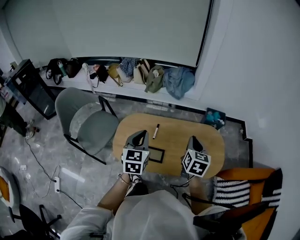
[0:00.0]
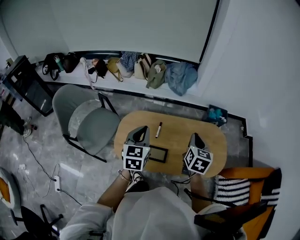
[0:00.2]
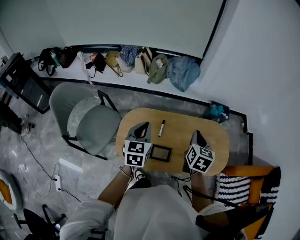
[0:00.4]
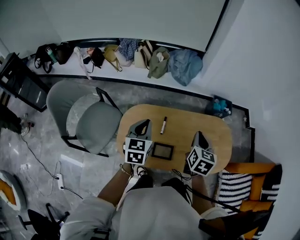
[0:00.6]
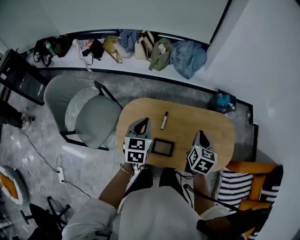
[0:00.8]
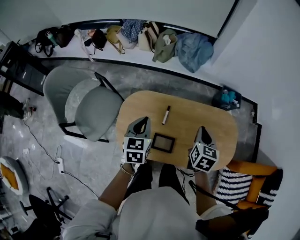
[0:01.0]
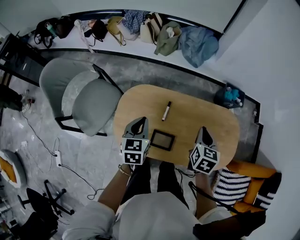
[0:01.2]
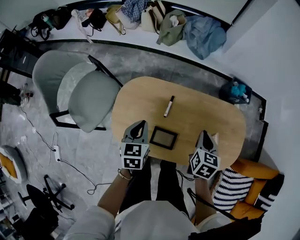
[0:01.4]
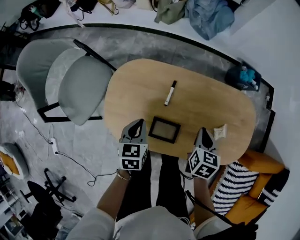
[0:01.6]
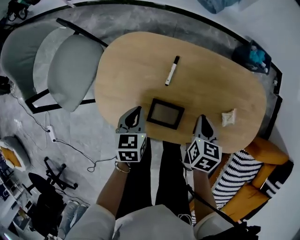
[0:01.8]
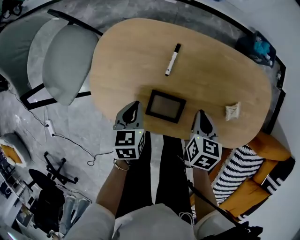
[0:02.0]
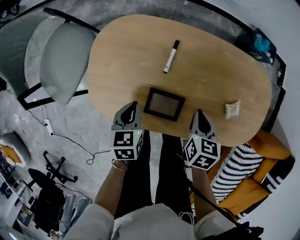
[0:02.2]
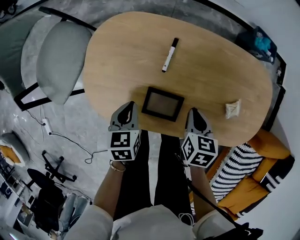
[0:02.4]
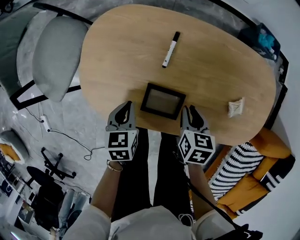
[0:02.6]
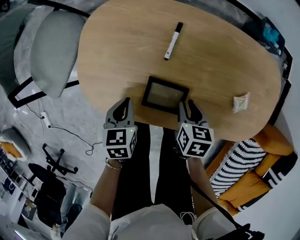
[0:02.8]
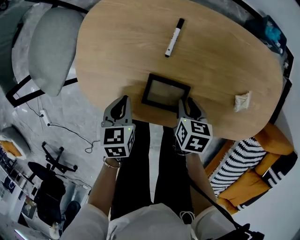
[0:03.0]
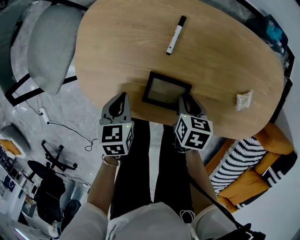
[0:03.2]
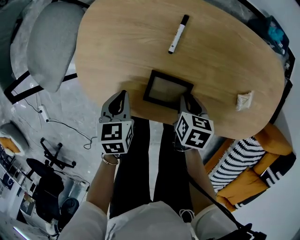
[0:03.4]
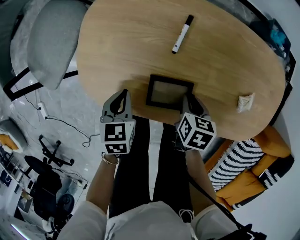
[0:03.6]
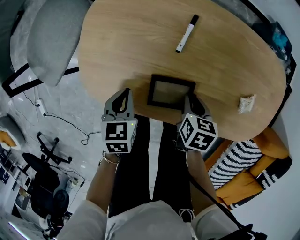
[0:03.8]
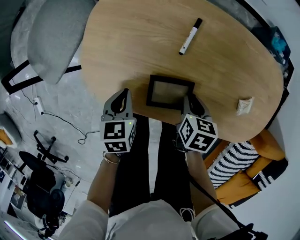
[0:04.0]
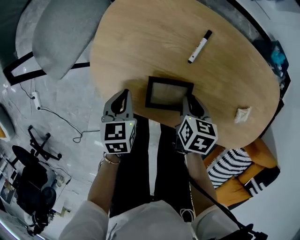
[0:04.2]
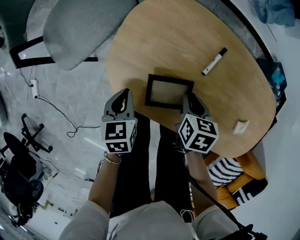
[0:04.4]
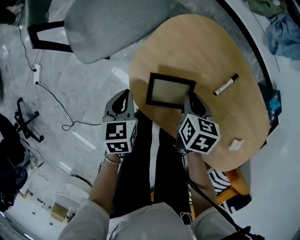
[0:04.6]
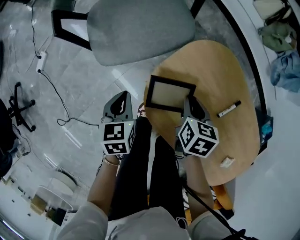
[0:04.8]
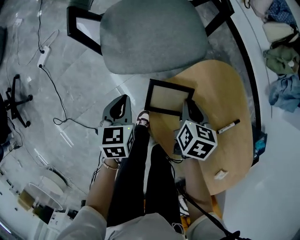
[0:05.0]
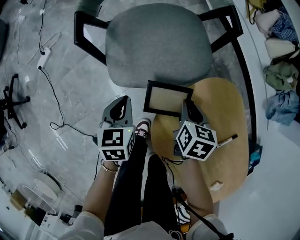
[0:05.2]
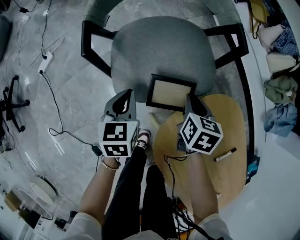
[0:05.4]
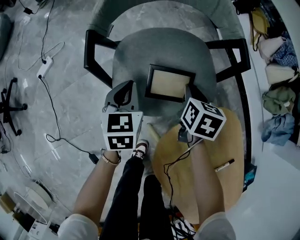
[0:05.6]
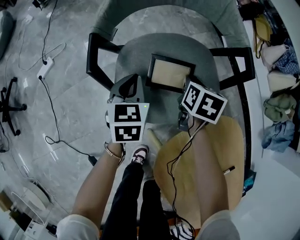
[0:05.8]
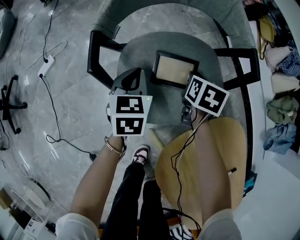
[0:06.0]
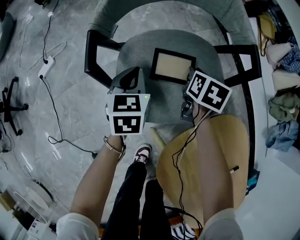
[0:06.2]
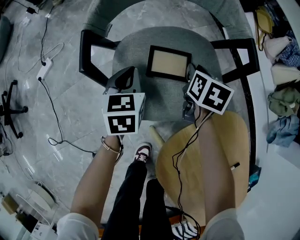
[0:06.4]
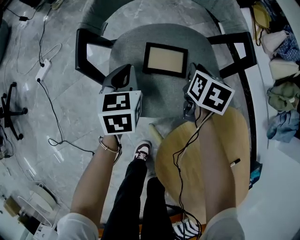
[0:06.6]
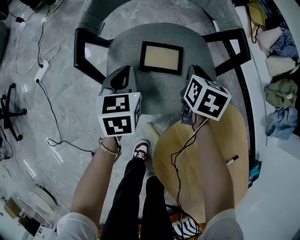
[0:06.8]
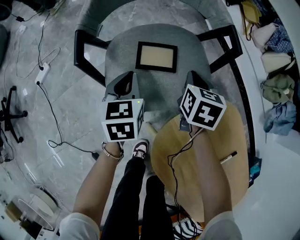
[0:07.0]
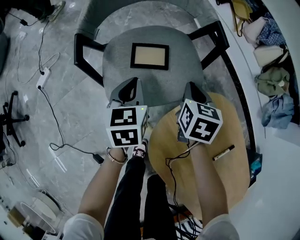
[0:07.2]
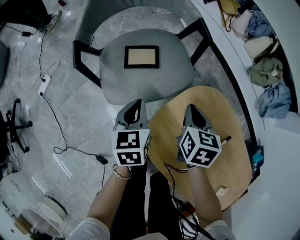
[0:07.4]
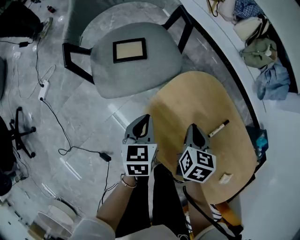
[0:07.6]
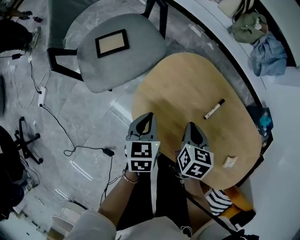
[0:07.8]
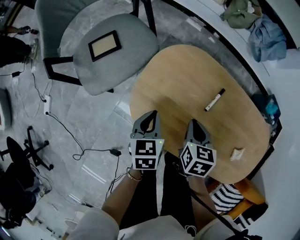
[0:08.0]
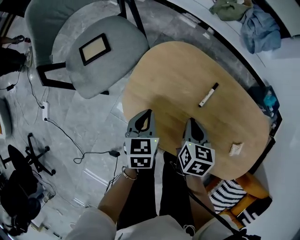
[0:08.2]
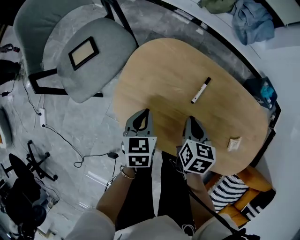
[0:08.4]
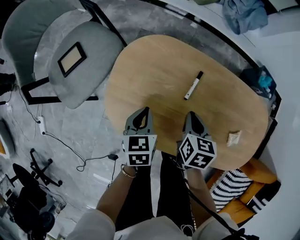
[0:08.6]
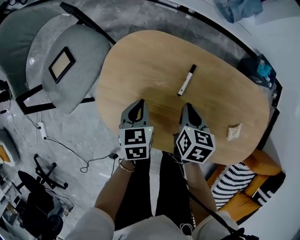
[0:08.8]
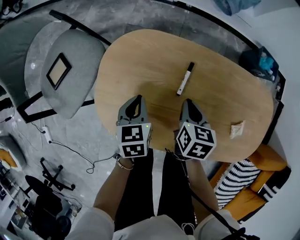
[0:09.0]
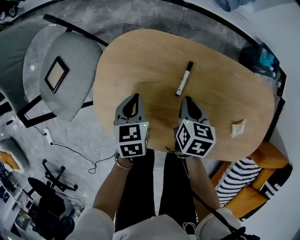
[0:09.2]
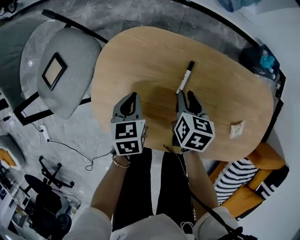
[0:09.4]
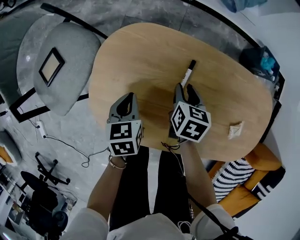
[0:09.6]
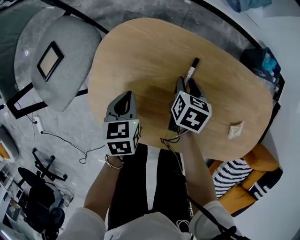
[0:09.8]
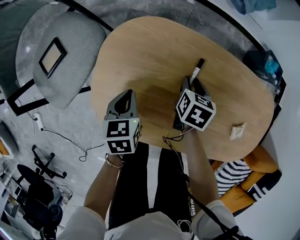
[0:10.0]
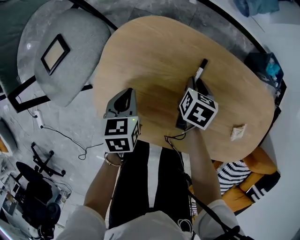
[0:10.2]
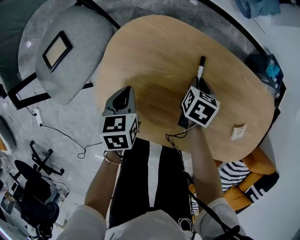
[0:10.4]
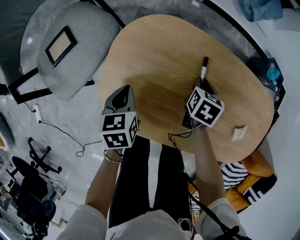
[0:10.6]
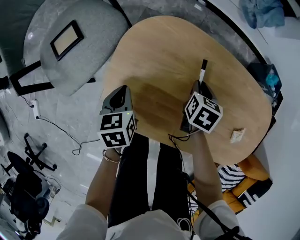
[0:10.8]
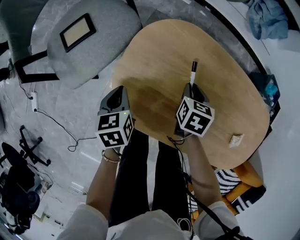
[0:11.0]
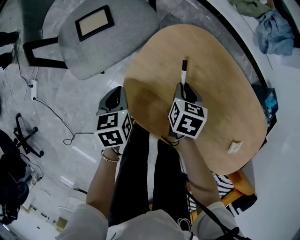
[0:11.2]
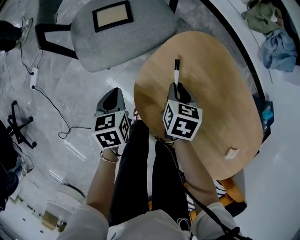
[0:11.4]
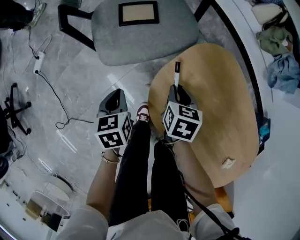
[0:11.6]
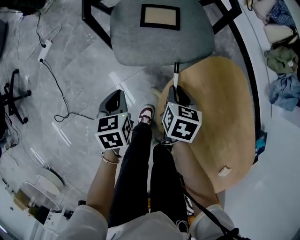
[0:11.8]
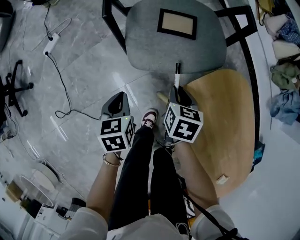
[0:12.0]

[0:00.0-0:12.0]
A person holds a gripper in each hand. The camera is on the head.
0:00.0 to 0:01.6: Both grippers travel together downward, about 30 cm. The right gripper rotates roughly 30 degrees. Meanwhile the left gripper rotates approximately 30 degrees.
0:01.6 to 0:03.0: The left gripper heads downward and backward, covering roughly 15 cm. The right gripper shifts about 20 cm downward, changes its angle by some 20 degrees, and opens its fingers.
0:03.0 to 0:04.4: The right gripper moves to the left and forward, some 15 cm. The left gripper moves to the left, about 10 cm.
0:04.4 to 0:06.0: The two grippers travel together, some 50 cm. The left gripper swivels roughly 30 degrees. The right gripper changes its angle by about 30 degrees.
0:06.0 to 0:07.6: Both grippers move backward and to the right, approximately 35 cm.
0:07.6 to 0:09.0: The two grippers go roughly 20 cm to the right. The left gripper turns by roughly 30 degrees; the right gripper rotates about 30 degrees.
0:09.0 to 0:10.4: The right gripper travels downward and forward by roughly 10 cm; the left gripper heads to the left, covering roughly 5 cm.
0:10.4 to 0:12.0: The left gripper shifts by some 35 cm, and turns by roughly 40 degrees. Meanwhile the right gripper shifts by some 40 cm, and changes its angle by roughly 50 degrees.

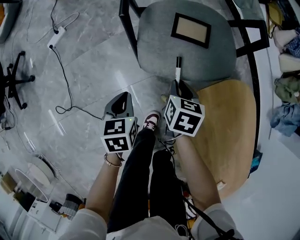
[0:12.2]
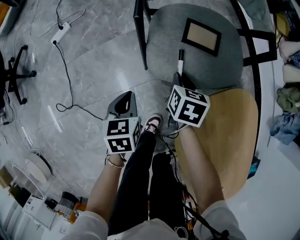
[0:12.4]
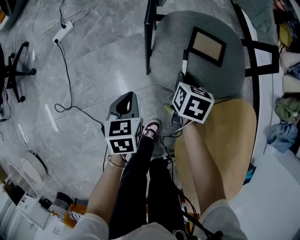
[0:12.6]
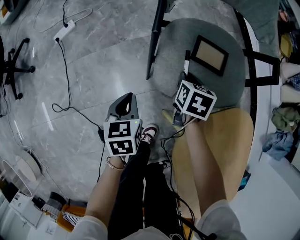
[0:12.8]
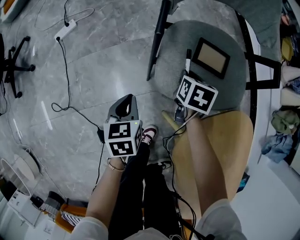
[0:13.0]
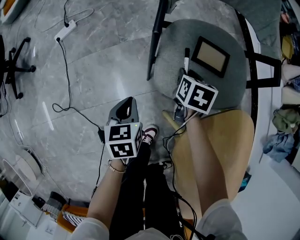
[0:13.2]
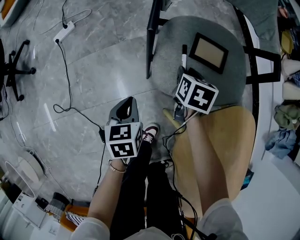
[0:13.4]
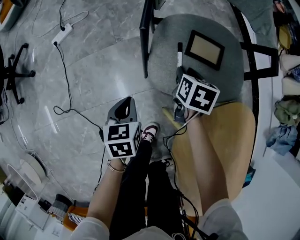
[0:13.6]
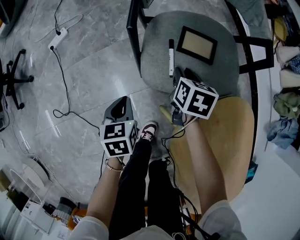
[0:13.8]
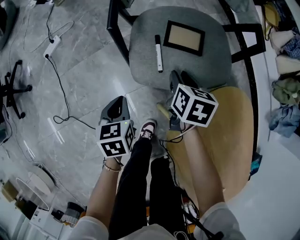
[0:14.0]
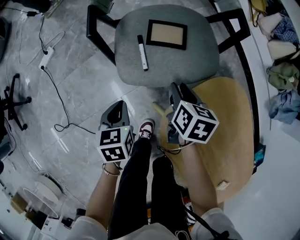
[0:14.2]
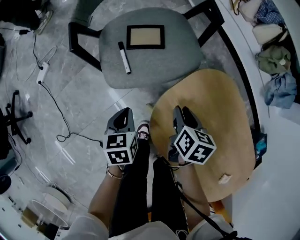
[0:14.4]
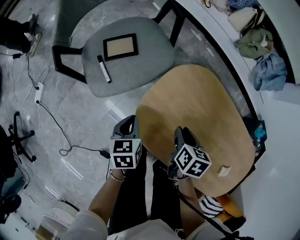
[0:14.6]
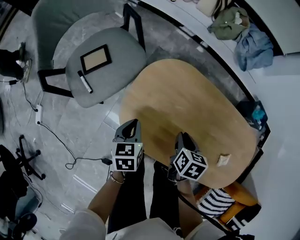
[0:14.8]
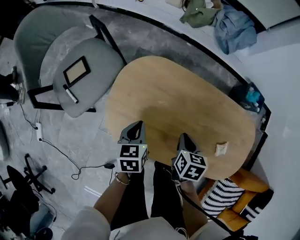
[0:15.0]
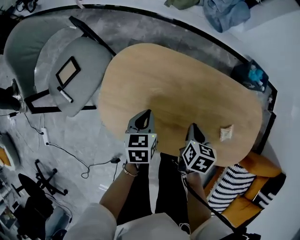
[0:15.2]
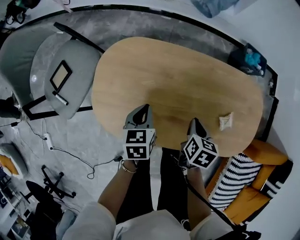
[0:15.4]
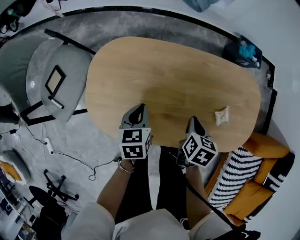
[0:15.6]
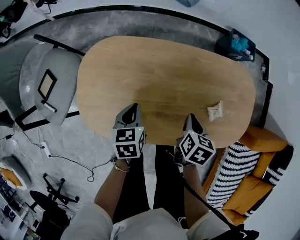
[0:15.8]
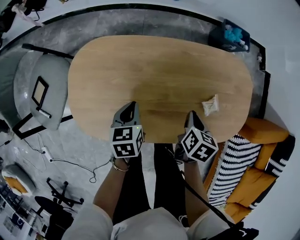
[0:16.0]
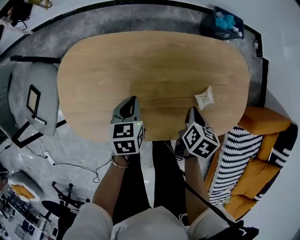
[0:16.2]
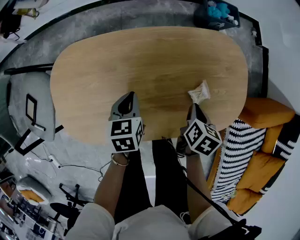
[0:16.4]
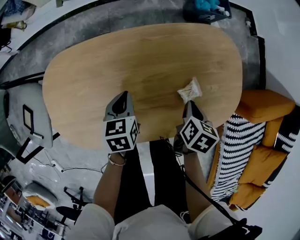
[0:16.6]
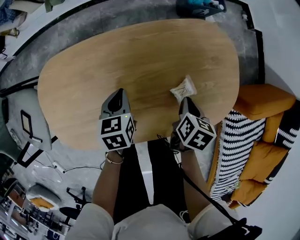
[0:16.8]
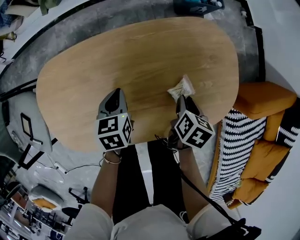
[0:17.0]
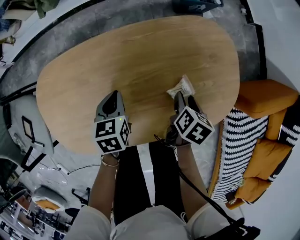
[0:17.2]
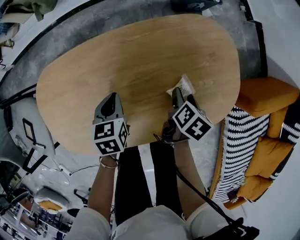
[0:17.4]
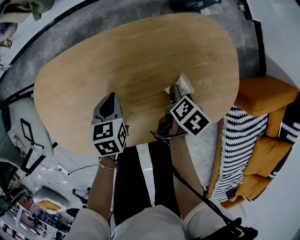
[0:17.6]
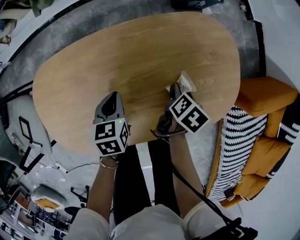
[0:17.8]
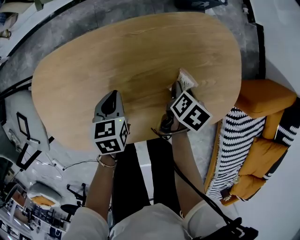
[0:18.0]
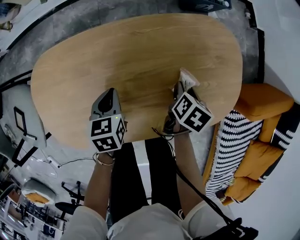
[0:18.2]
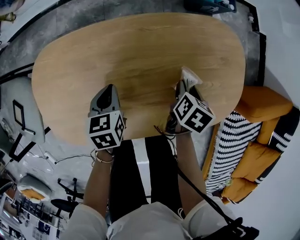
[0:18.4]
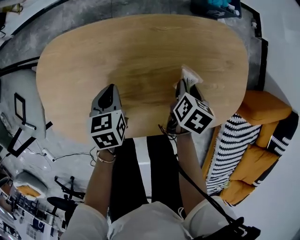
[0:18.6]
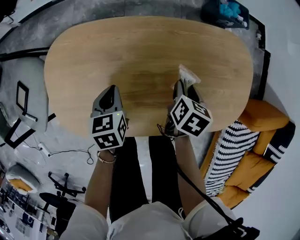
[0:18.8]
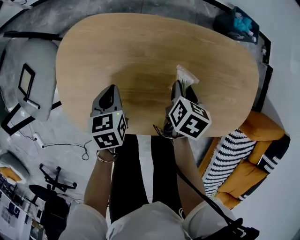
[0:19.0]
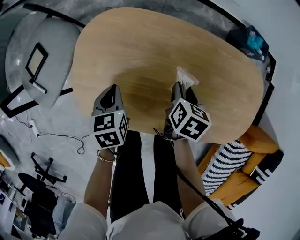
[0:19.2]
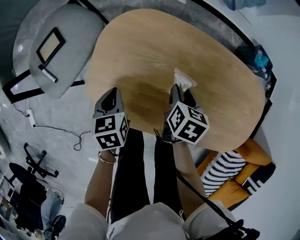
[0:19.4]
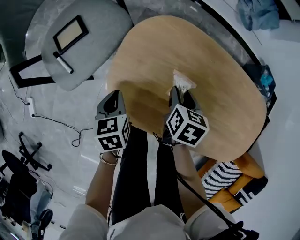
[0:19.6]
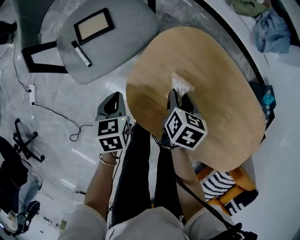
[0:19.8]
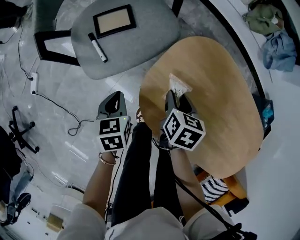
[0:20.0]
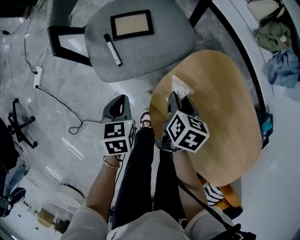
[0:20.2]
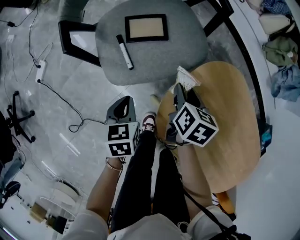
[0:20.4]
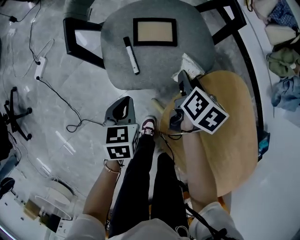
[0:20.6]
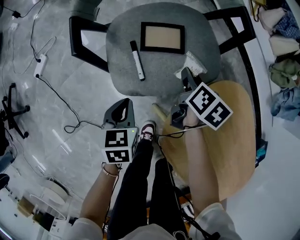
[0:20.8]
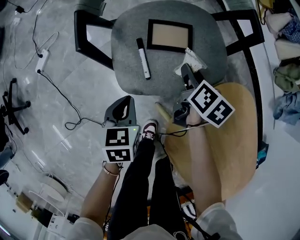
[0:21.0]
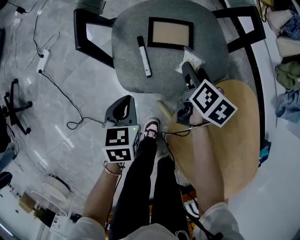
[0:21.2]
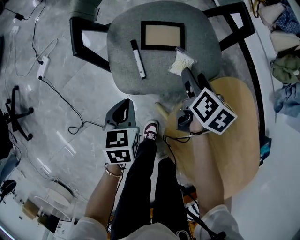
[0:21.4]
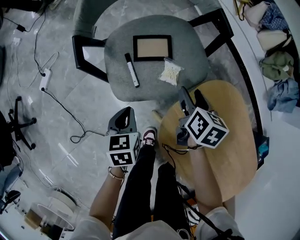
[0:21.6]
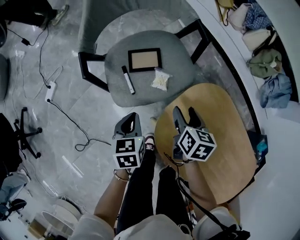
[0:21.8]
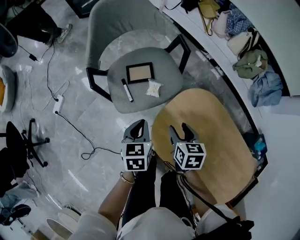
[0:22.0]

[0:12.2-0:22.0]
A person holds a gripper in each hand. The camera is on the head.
0:12.2 to 0:13.6: The right gripper shifts roughly 10 cm forward.
0:13.6 to 0:15.0: Both grippers are carried some 50 cm. The left gripper rotates some 50 degrees; the right gripper rotates around the line of its fingers by about 40 degrees, clockwise from behind, and closes.
0:15.0 to 0:16.4: The left gripper changes place by roughly 25 cm, and turns by about 20 degrees. The right gripper ends up approximately 30 cm from where it was, and turns by roughly 40 degrees.
0:16.4 to 0:17.8: The left gripper shifts by about 5 cm. Meanwhile the right gripper goes roughly 5 cm downward, changes its angle by roughly 20 degrees, and opens its fingers.
0:17.8 to 0:19.2: The right gripper ends up approximately 30 cm from where it was, rotates around the line of its fingers by approximately 40 degrees, counterclockwise from behind, and closes its fingers. The left gripper shifts by about 30 cm, and rotates some 30 degrees.
0:19.2 to 0:20.6: The left gripper moves roughly 35 cm, and changes its angle by about 30 degrees; the right gripper moves roughly 50 cm, and turns by approximately 40 degrees.
0:20.6 to 0:22.0: The left gripper moves upward and to the right, approximately 20 cm, while the right gripper is displaced upward and backward by some 20 cm.

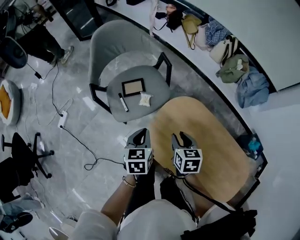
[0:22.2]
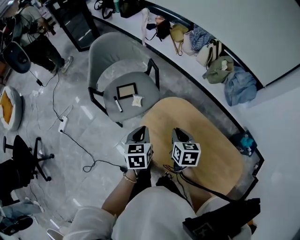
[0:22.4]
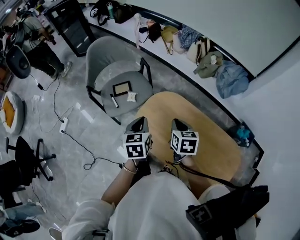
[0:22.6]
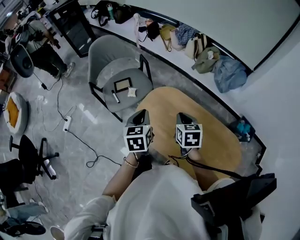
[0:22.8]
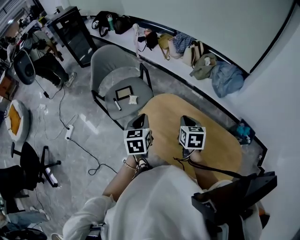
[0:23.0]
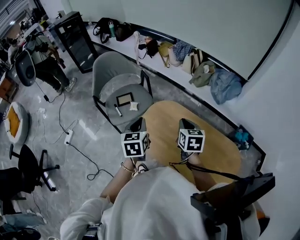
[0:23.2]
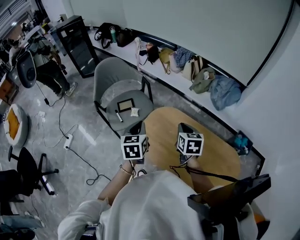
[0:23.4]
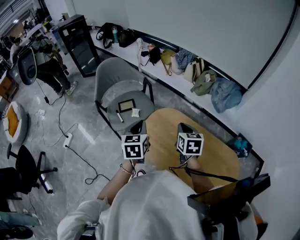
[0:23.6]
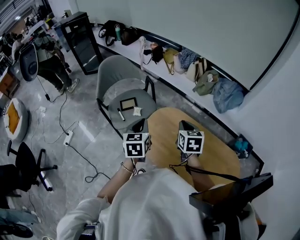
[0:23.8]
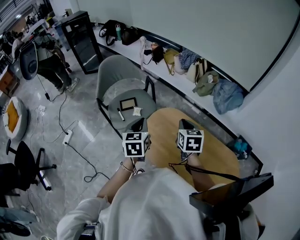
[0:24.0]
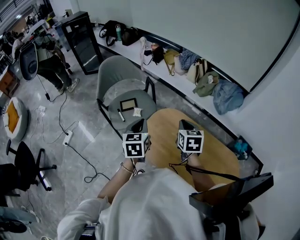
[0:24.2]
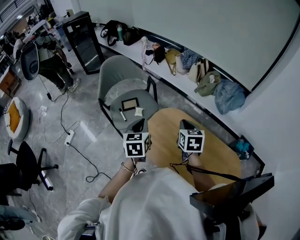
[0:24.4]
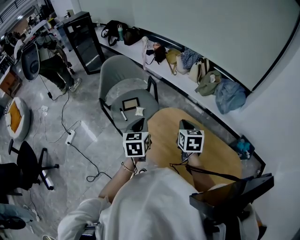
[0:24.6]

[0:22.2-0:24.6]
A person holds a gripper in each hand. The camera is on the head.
0:22.2 to 0:23.4: The left gripper heads upward, backward and to the right, covering approximately 25 cm; the right gripper shifts approximately 25 cm upward, to the right and backward, and closes its fingers.
0:23.4 to 0:24.6: The grippers move only a little.
